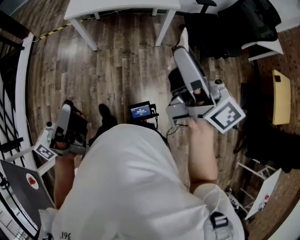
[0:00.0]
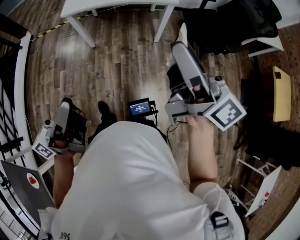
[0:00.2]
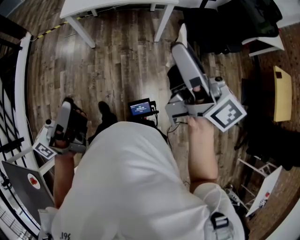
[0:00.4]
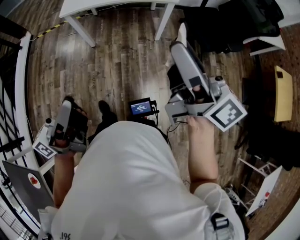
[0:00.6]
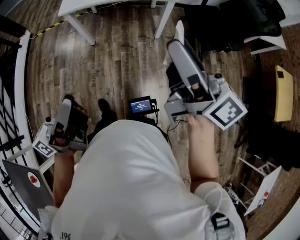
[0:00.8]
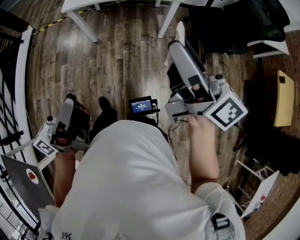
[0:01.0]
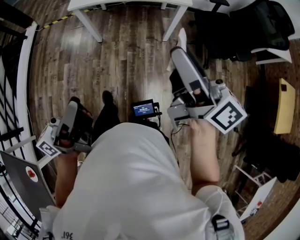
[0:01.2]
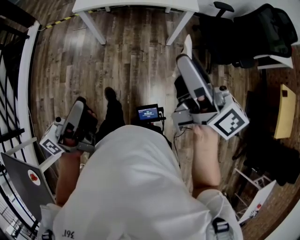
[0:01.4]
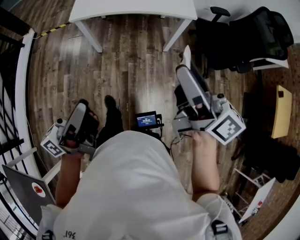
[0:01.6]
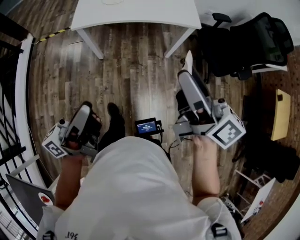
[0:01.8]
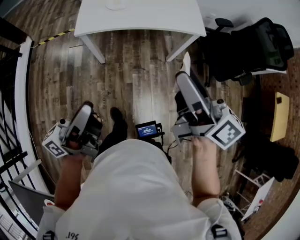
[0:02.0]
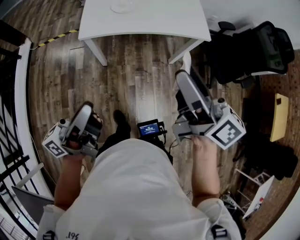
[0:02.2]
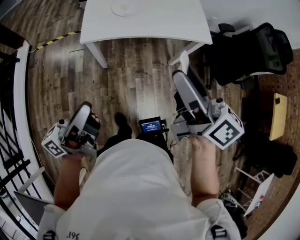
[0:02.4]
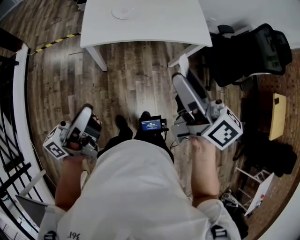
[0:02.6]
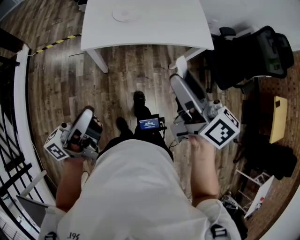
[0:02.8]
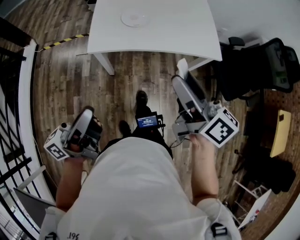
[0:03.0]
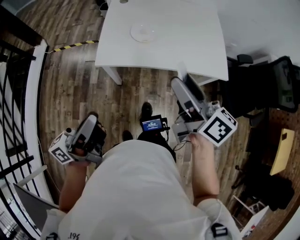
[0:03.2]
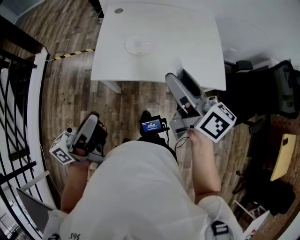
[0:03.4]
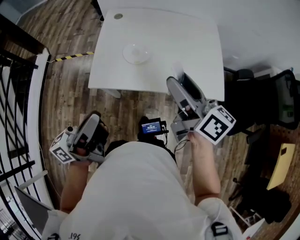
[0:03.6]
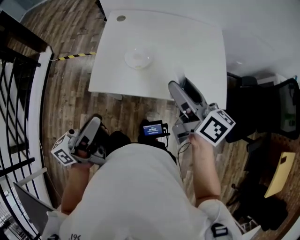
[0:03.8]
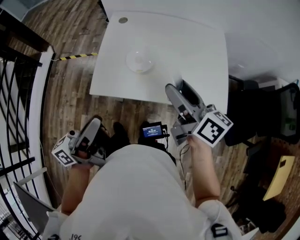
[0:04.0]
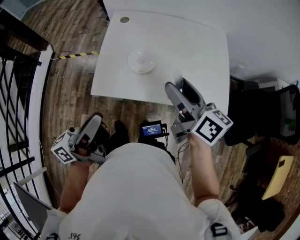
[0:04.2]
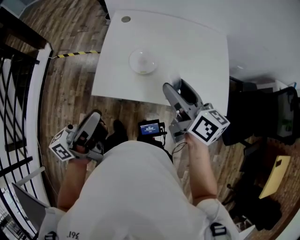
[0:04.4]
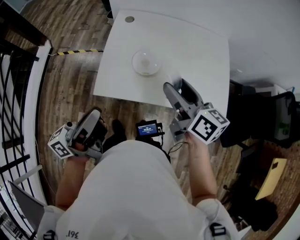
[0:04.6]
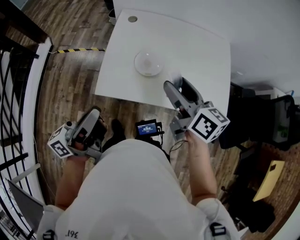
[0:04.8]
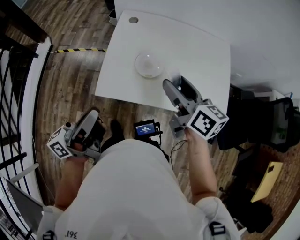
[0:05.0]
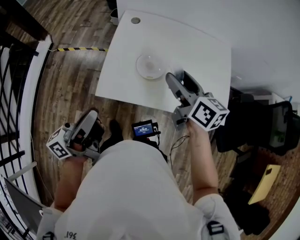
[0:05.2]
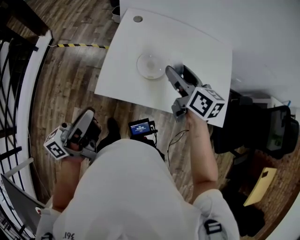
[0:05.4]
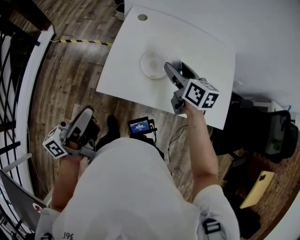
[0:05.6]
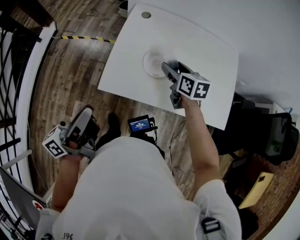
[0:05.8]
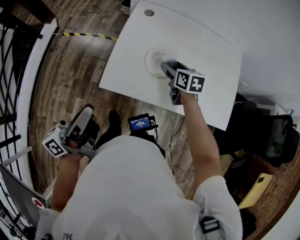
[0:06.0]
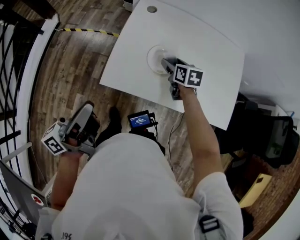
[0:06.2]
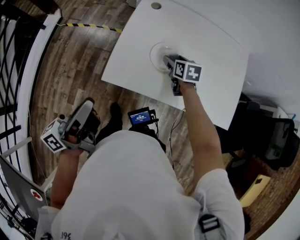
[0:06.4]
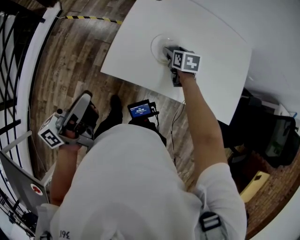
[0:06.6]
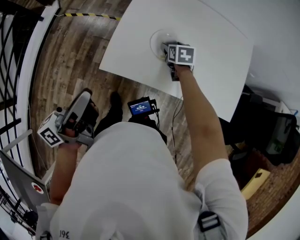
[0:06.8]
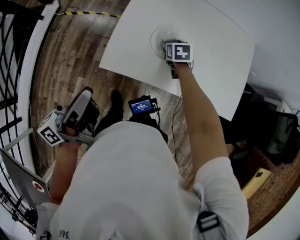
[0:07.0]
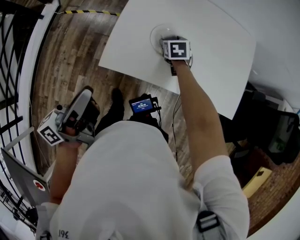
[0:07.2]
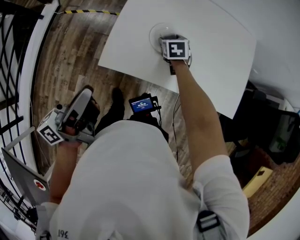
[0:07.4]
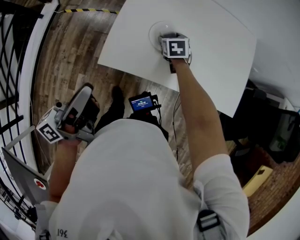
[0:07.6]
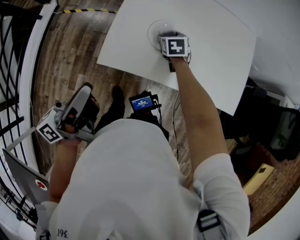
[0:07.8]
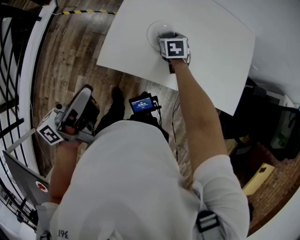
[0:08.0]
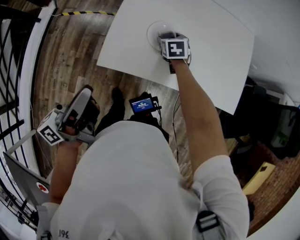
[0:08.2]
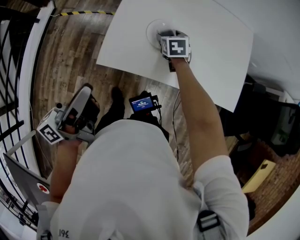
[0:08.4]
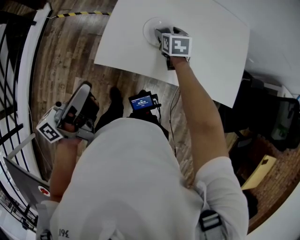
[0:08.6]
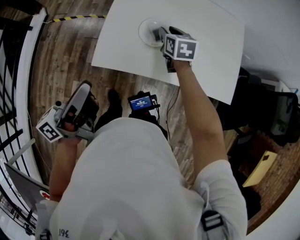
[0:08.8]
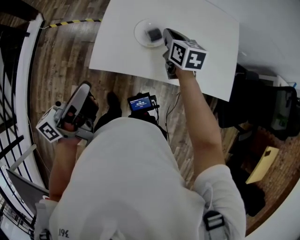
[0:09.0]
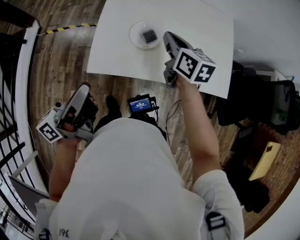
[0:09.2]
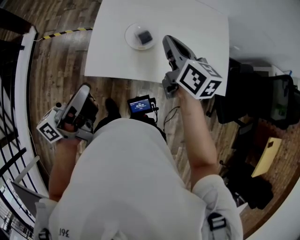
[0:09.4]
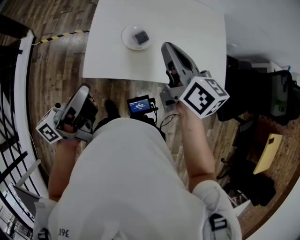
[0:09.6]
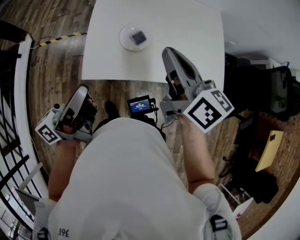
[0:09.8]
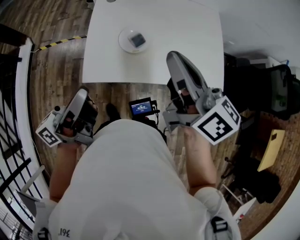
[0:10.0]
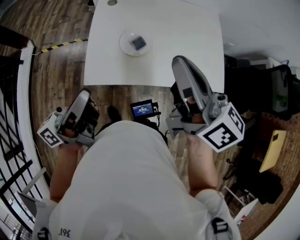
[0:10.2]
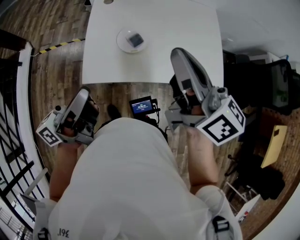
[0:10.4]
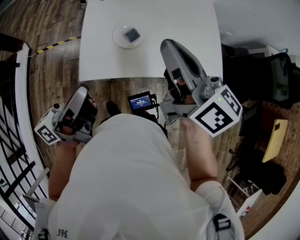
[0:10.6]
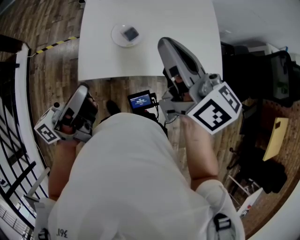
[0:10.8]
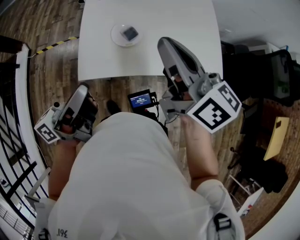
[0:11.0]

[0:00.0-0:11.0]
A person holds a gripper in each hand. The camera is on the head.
0:00.0 to 0:01.6: The left gripper is displaced forward by approximately 10 cm, while the right gripper is displaced forward and to the left by about 10 cm.
0:01.6 to 0:03.2: Both grippers travel together forward and to the left, some 35 cm.
0:03.2 to 0:04.8: The grippers both shift forward by roughly 20 cm.
0:04.8 to 0:06.2: The right gripper moves downward and forward, roughly 25 cm, and tips its fingers downward by some 30 degrees; the left gripper moves approximately 5 cm.
0:06.2 to 0:07.8: The right gripper goes some 5 cm downward, and turns by some 20 degrees.
0:07.8 to 0:09.4: The right gripper is displaced upward and backward by about 30 cm, tips its fingers upward by some 40 degrees, and closes its fingers.
0:09.4 to 0:11.0: The right gripper shifts roughly 15 cm upward and backward.

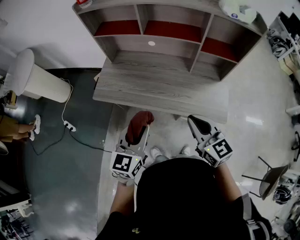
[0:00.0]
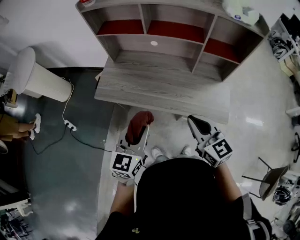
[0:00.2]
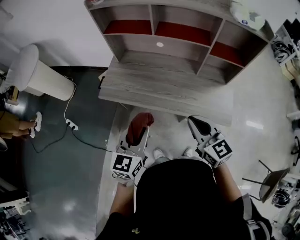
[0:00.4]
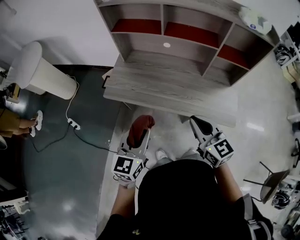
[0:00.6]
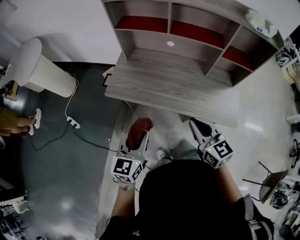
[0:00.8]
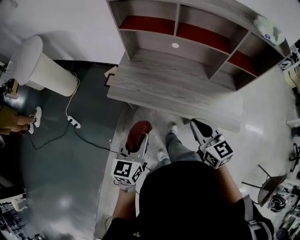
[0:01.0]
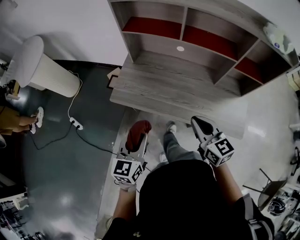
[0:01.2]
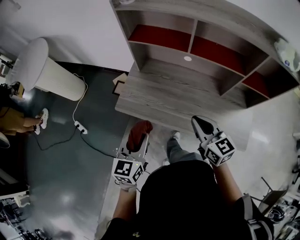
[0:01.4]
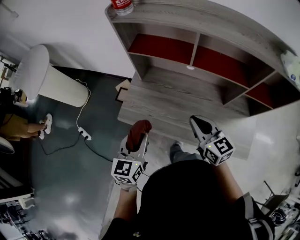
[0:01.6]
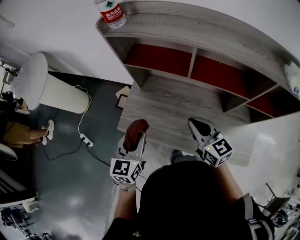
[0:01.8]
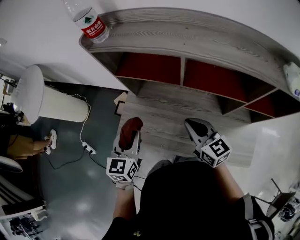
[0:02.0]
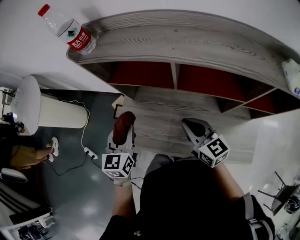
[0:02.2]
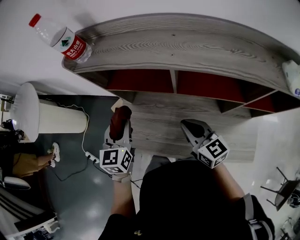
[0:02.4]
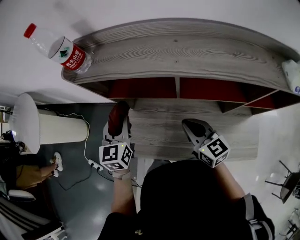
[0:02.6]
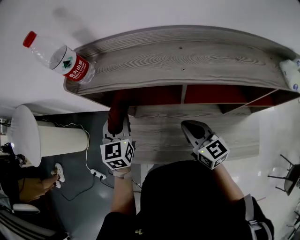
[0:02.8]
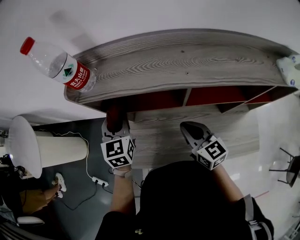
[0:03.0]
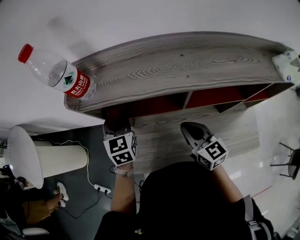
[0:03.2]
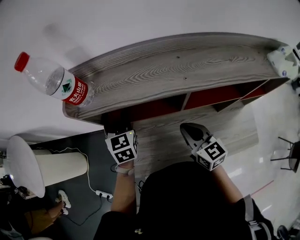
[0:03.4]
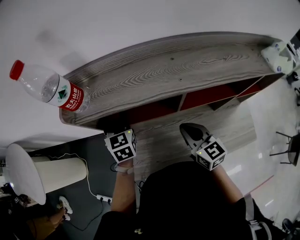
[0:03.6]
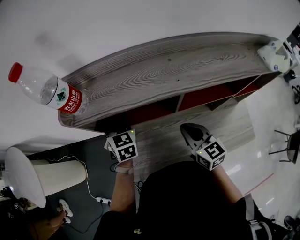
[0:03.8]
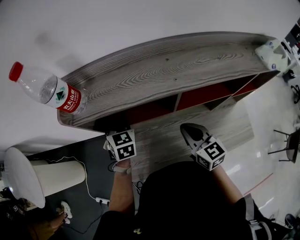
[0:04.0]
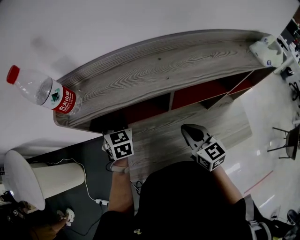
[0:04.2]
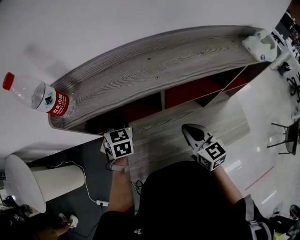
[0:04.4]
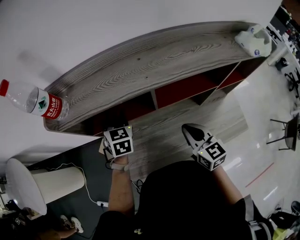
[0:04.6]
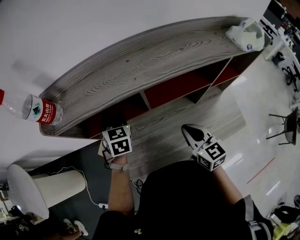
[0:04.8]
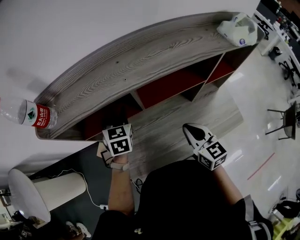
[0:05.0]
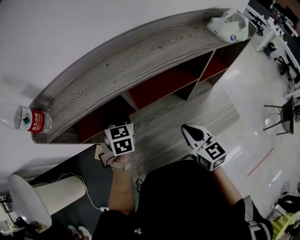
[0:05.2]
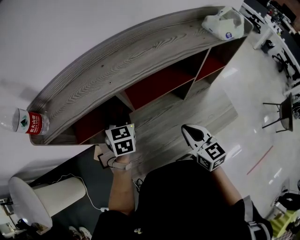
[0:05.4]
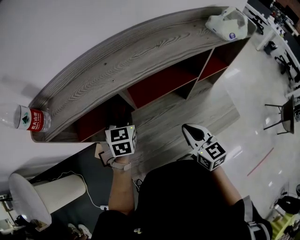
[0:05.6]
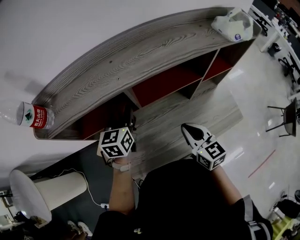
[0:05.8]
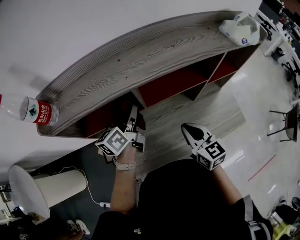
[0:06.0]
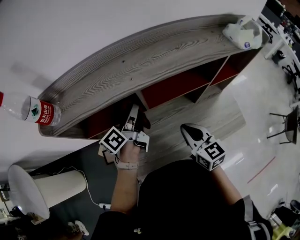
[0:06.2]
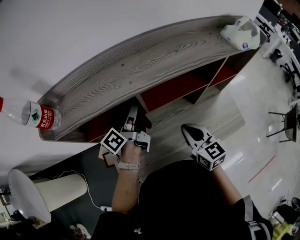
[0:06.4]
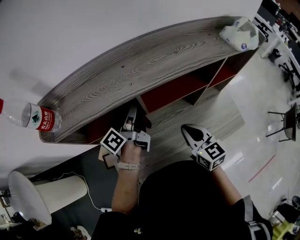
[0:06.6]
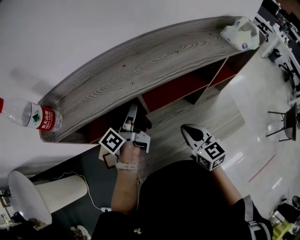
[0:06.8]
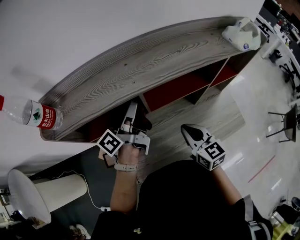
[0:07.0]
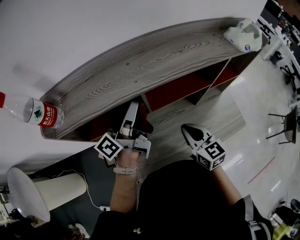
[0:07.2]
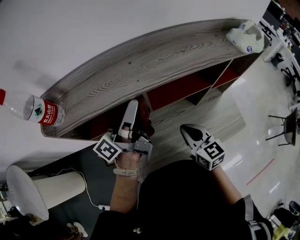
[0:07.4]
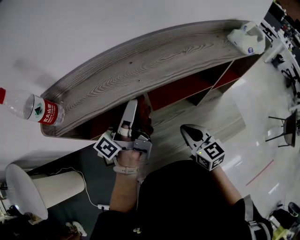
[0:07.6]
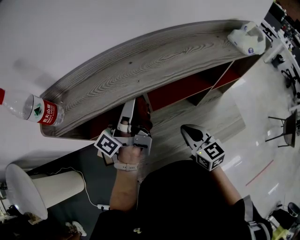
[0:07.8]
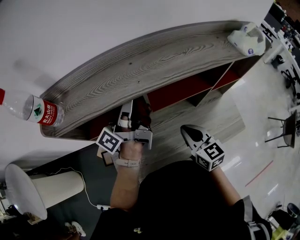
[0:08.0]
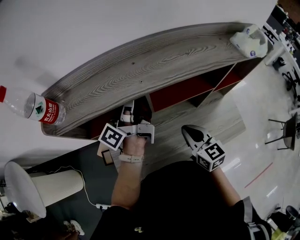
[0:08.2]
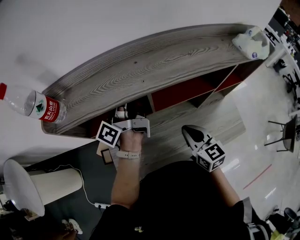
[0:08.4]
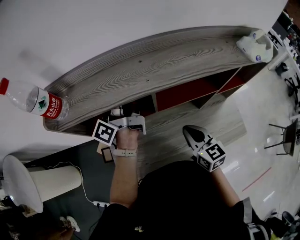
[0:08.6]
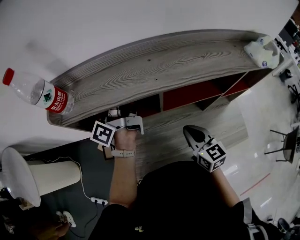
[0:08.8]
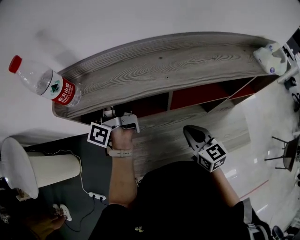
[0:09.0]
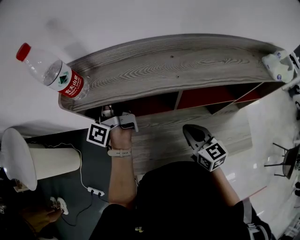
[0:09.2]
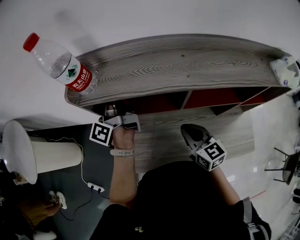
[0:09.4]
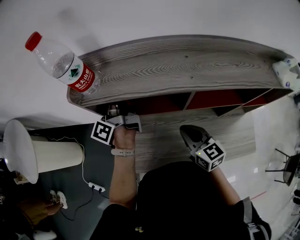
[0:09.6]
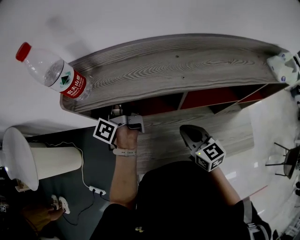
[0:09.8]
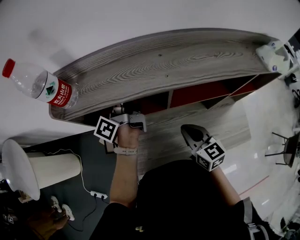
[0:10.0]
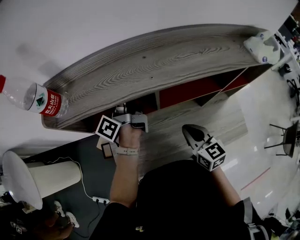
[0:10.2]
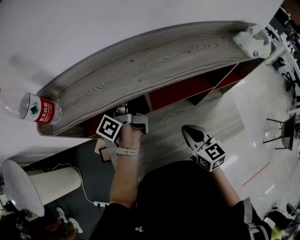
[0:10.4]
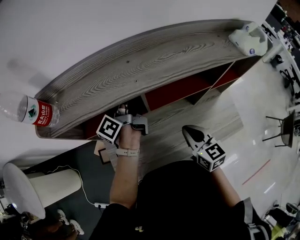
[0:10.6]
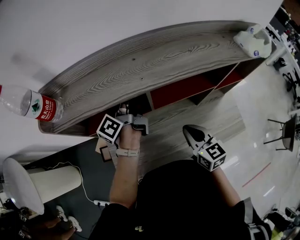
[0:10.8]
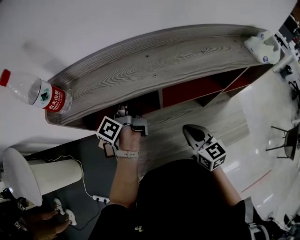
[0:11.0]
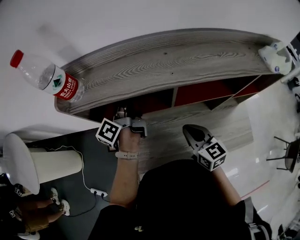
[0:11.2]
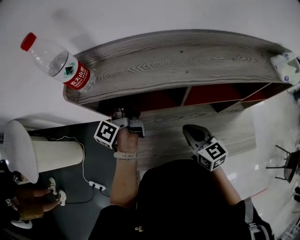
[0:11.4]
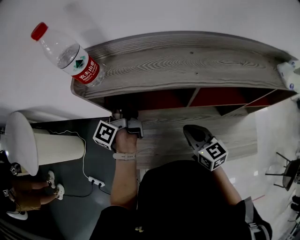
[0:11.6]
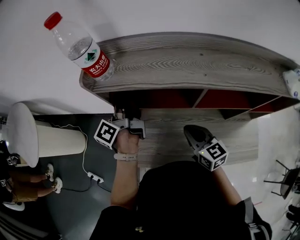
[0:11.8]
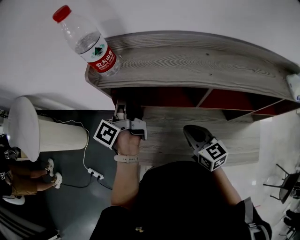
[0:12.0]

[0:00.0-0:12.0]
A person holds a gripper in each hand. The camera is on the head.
0:00.0 to 0:01.6: The grippers both shift forward and to the left by about 25 cm.
0:01.6 to 0:03.0: The left gripper goes about 35 cm forward. The right gripper moves forward, some 15 cm.
0:03.0 to 0:04.4: Both grippers move to the right, approximately 5 cm.
0:04.4 to 0:06.0: The right gripper moves to the right, about 5 cm, while the left gripper shifts approximately 15 cm to the right, and turns by about 60 degrees.
0:06.0 to 0:07.6: The left gripper goes roughly 15 cm upward, and points its fingers some 40 degrees further upward.
0:07.6 to 0:09.0: The left gripper is displaced to the left and forward by approximately 15 cm, and swivels roughly 40 degrees.
0:09.0 to 0:10.4: The left gripper shifts about 15 cm to the right and downward, and turns by some 20 degrees.
0:10.4 to 0:12.0: The right gripper moves some 15 cm, and turns by approximately 20 degrees; the left gripper changes place by roughly 25 cm, and swivels about 30 degrees.

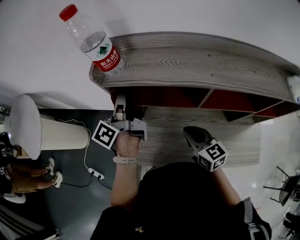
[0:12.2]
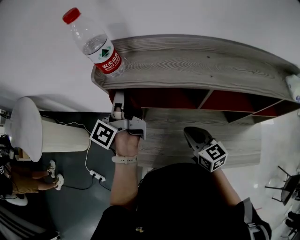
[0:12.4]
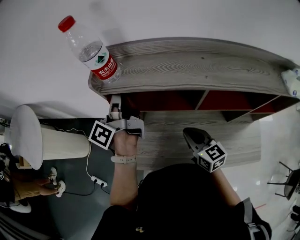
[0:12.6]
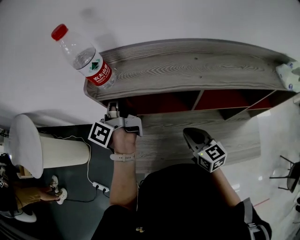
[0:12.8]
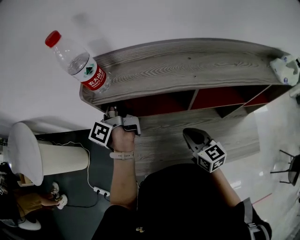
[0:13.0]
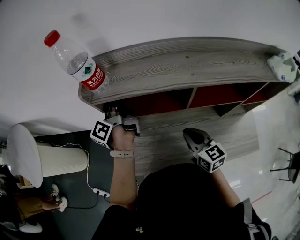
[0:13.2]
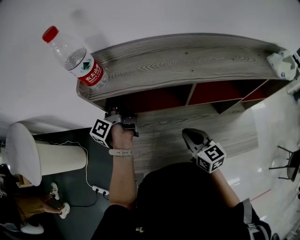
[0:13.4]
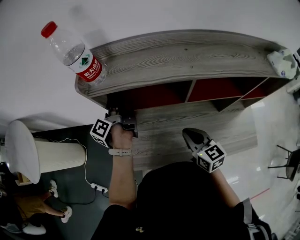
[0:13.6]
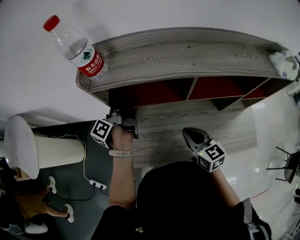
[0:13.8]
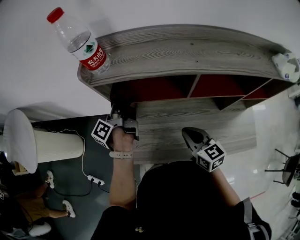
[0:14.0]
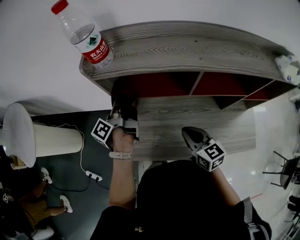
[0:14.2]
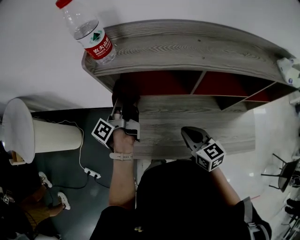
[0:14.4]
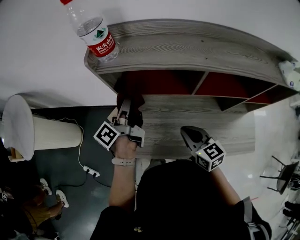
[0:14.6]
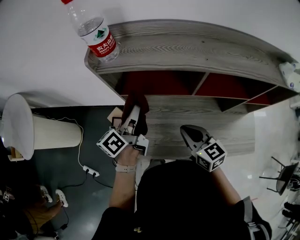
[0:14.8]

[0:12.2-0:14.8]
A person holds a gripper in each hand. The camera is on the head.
0:12.2 to 0:13.4: The left gripper travels downward and forward by some 10 cm.
0:13.4 to 0:14.8: The left gripper is displaced backward by approximately 15 cm, and rotates approximately 20 degrees.
